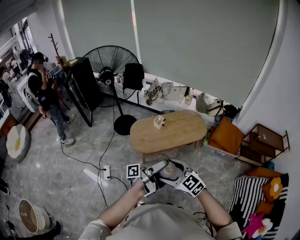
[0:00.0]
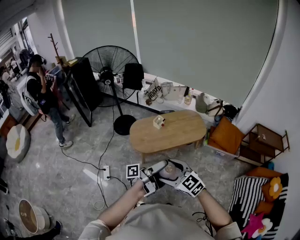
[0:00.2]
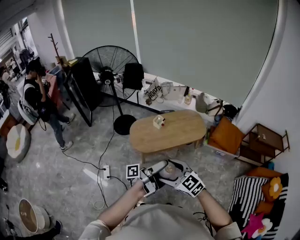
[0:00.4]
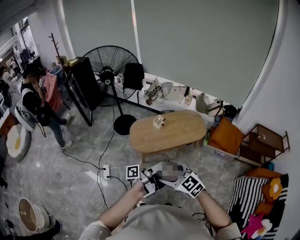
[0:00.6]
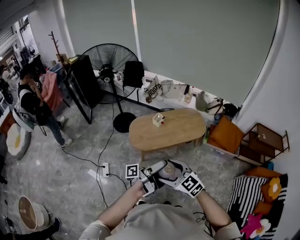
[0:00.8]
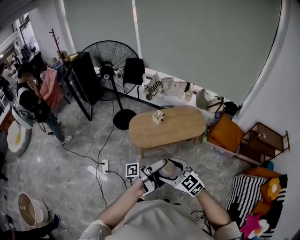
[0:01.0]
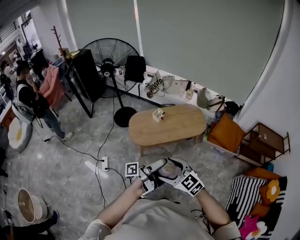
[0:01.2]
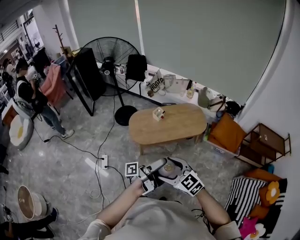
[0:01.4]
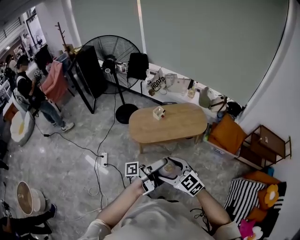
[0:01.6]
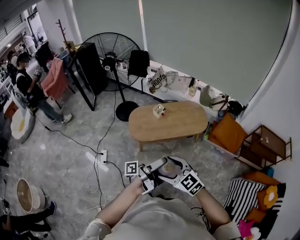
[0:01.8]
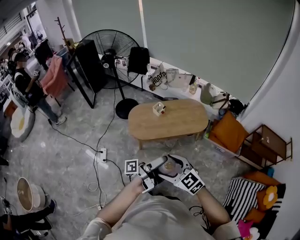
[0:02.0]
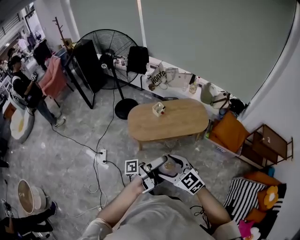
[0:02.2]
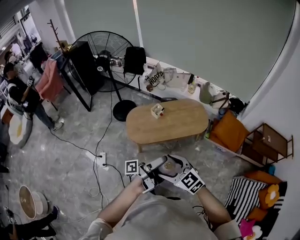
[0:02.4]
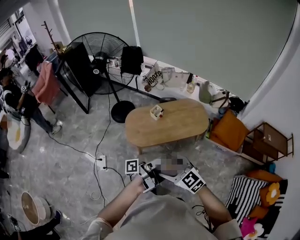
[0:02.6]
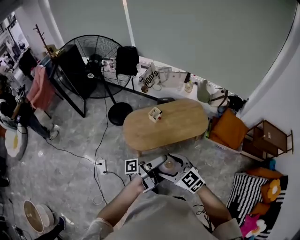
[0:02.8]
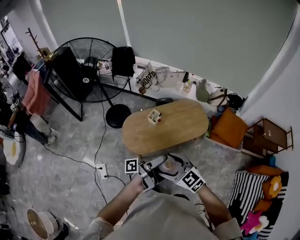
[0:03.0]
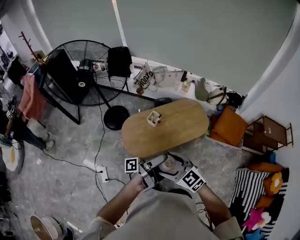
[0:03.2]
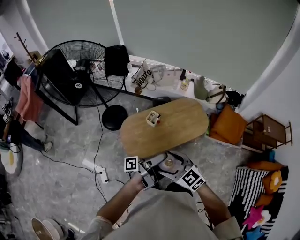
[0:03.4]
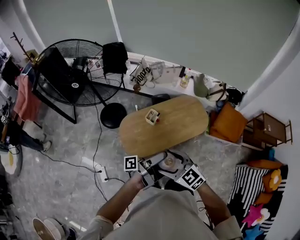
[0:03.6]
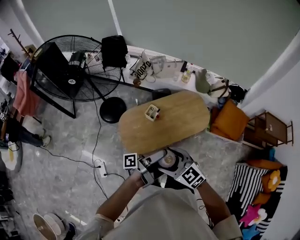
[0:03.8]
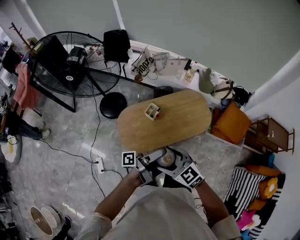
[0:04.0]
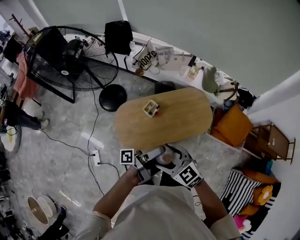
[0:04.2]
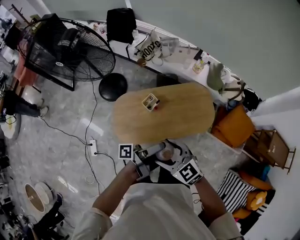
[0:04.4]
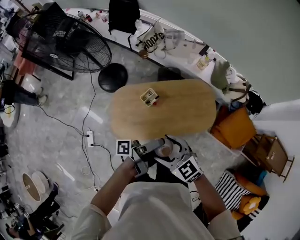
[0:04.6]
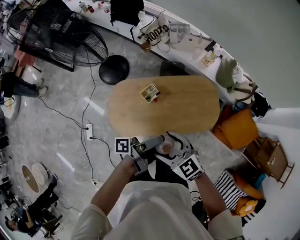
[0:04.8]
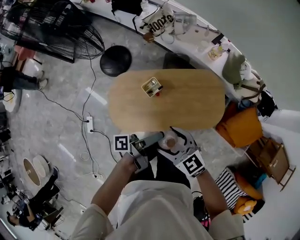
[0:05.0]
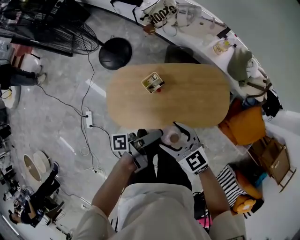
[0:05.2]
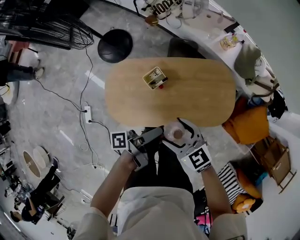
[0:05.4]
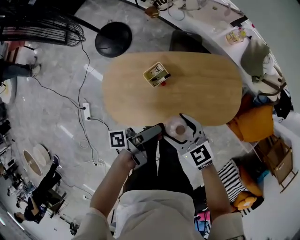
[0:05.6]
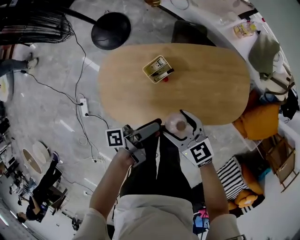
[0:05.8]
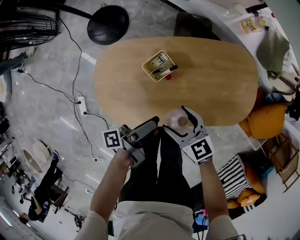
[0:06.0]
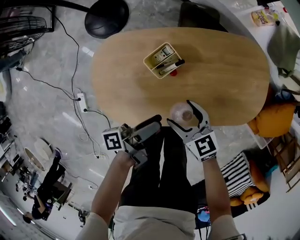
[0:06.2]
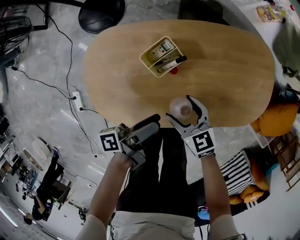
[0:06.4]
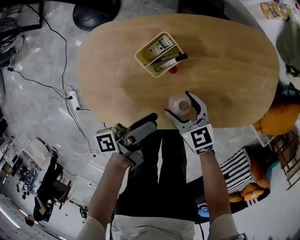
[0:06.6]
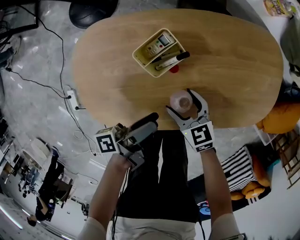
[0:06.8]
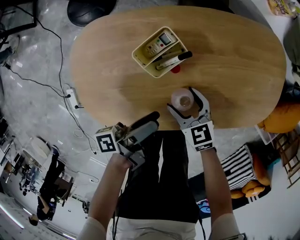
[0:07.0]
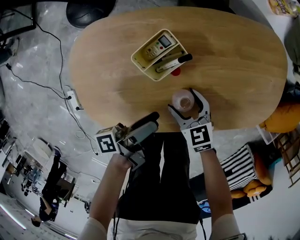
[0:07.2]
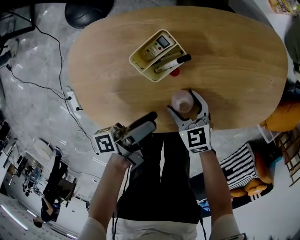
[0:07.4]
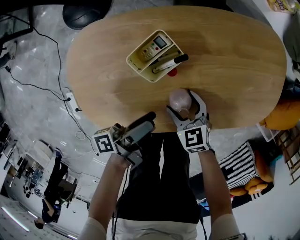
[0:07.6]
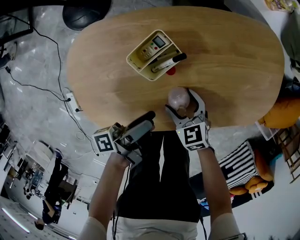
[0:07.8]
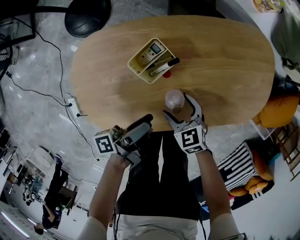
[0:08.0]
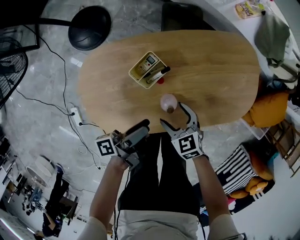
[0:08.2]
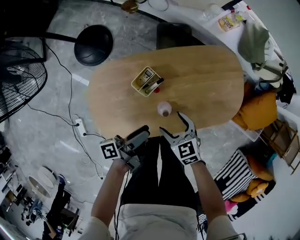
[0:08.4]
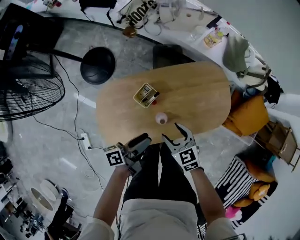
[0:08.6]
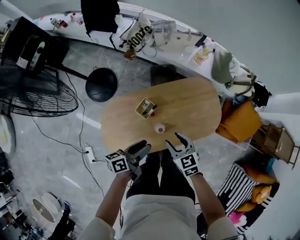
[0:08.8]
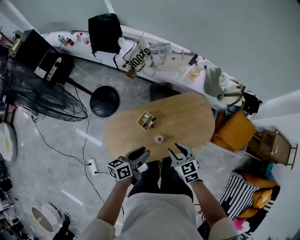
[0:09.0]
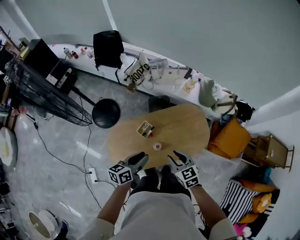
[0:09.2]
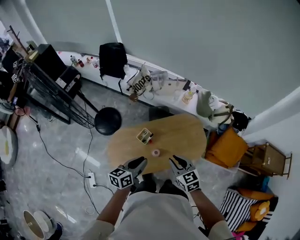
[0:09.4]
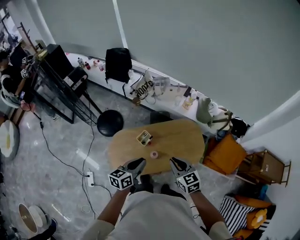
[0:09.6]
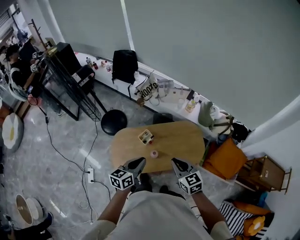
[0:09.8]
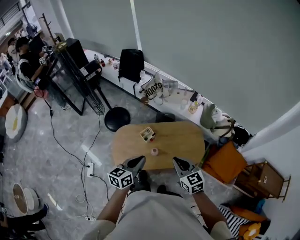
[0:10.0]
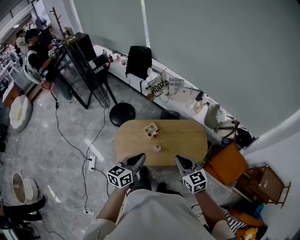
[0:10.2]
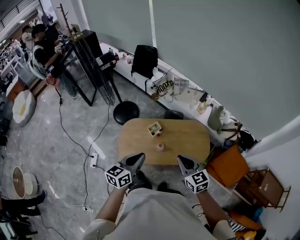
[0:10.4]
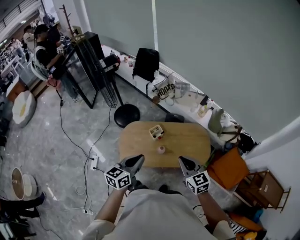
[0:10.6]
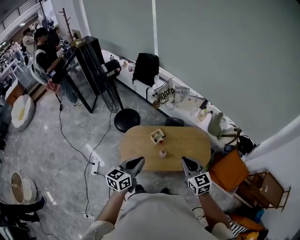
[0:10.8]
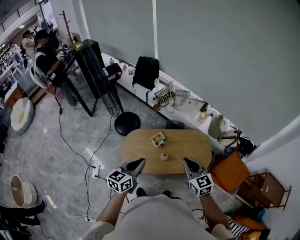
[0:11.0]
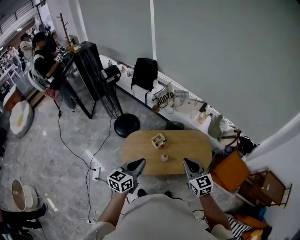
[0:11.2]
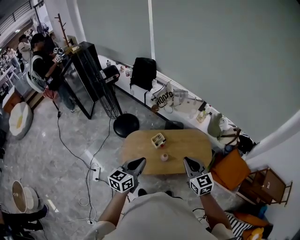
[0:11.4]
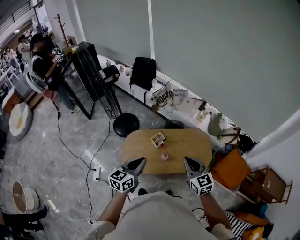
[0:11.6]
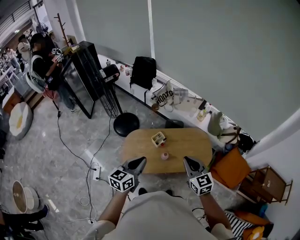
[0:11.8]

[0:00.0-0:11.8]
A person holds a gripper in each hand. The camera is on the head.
0.0 to 1.4 s: The right gripper ends up approximately 5 cm from where it was.
1.4 to 3.0 s: The right gripper ends up roughly 25 cm from where it was.
3.0 to 4.4 s: The right gripper ends up some 25 cm from where it was.
4.4 to 6.0 s: The right gripper shifts some 40 cm downward, and rotates about 20 degrees.
6.0 to 7.4 s: The right gripper travels downward by some 20 cm.
7.4 to 8.8 s: The right gripper goes approximately 40 cm upward, and closes.
8.8 to 10.4 s: The right gripper moves upward, some 30 cm, rotates approximately 20 degrees, and closes up.
10.4 to 11.8 s: The right gripper shifts by approximately 5 cm.

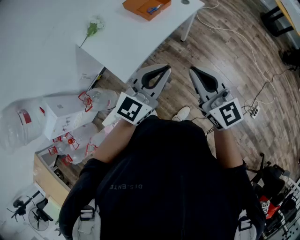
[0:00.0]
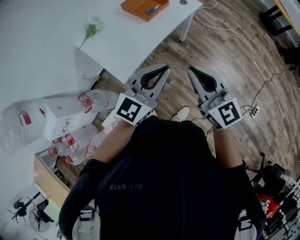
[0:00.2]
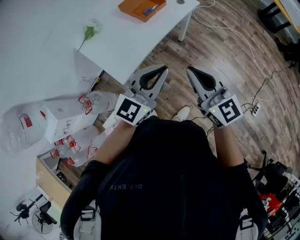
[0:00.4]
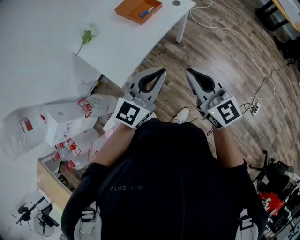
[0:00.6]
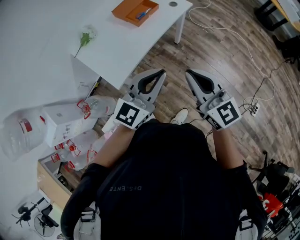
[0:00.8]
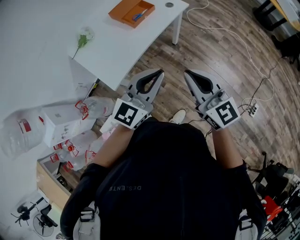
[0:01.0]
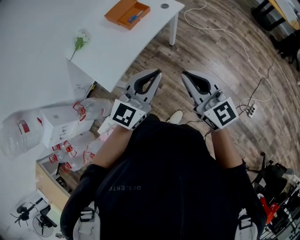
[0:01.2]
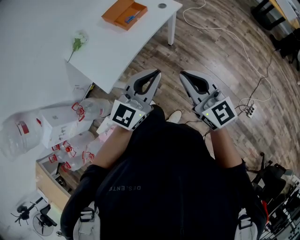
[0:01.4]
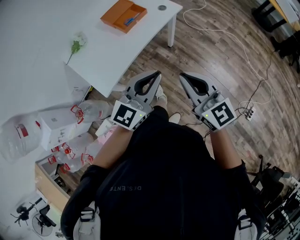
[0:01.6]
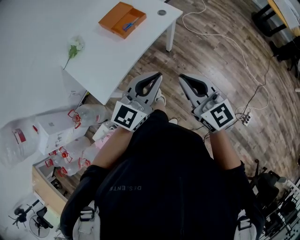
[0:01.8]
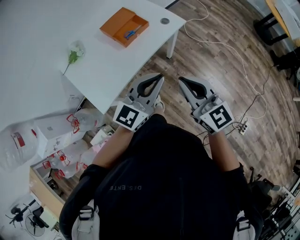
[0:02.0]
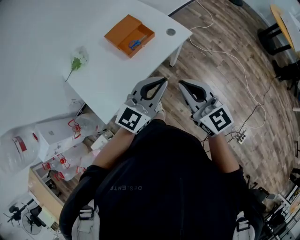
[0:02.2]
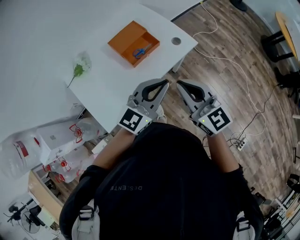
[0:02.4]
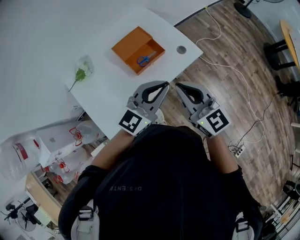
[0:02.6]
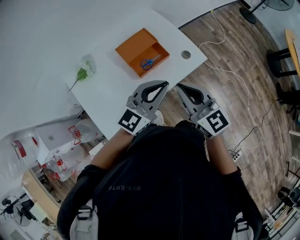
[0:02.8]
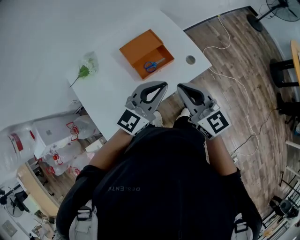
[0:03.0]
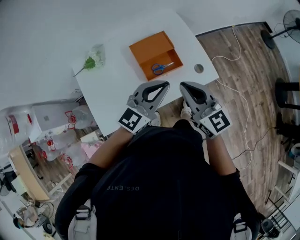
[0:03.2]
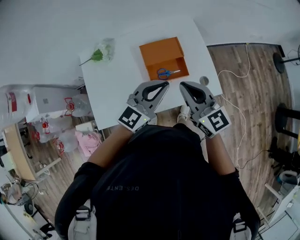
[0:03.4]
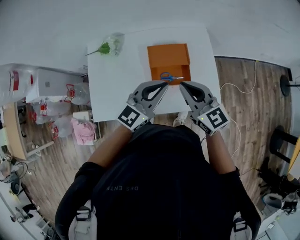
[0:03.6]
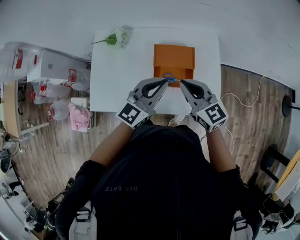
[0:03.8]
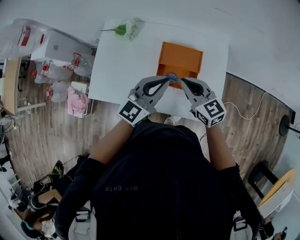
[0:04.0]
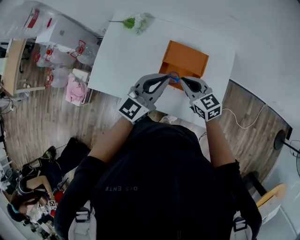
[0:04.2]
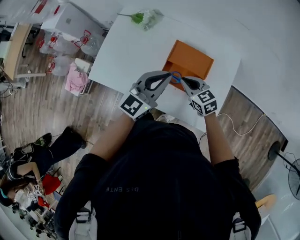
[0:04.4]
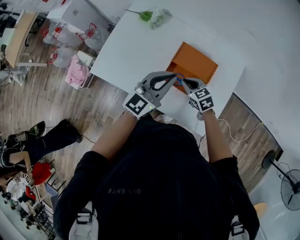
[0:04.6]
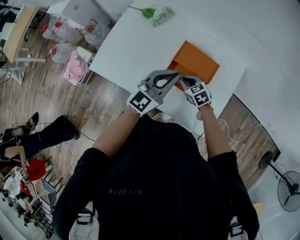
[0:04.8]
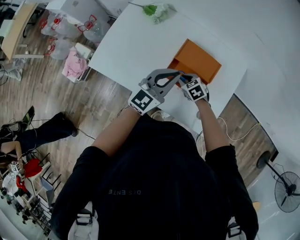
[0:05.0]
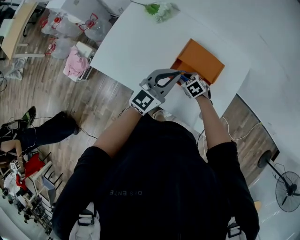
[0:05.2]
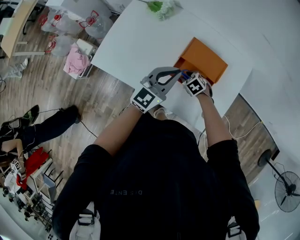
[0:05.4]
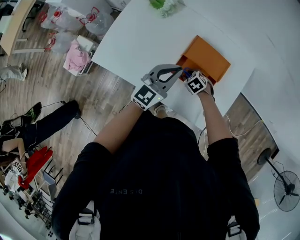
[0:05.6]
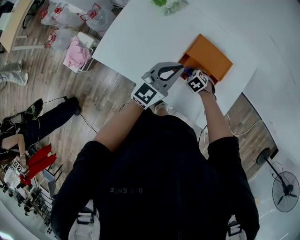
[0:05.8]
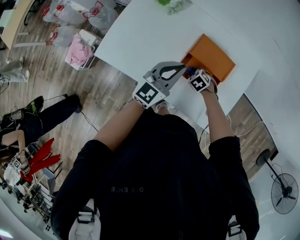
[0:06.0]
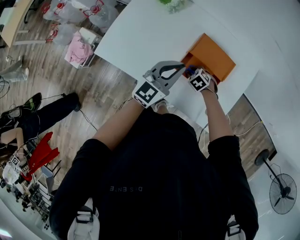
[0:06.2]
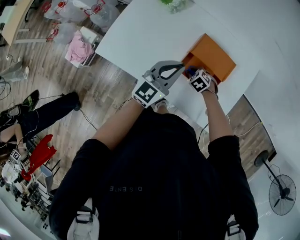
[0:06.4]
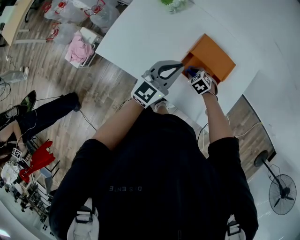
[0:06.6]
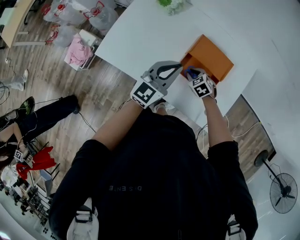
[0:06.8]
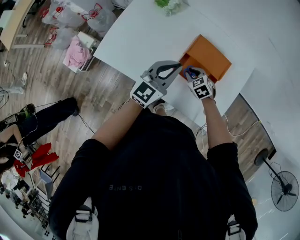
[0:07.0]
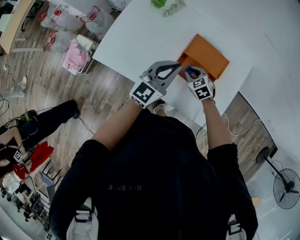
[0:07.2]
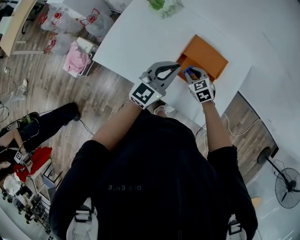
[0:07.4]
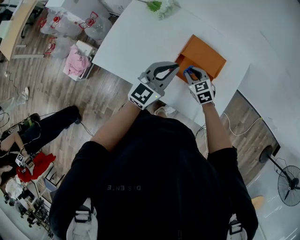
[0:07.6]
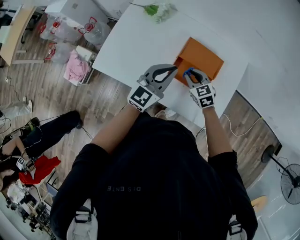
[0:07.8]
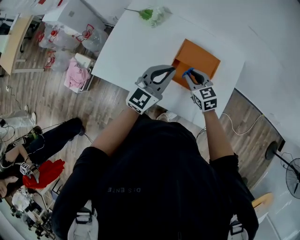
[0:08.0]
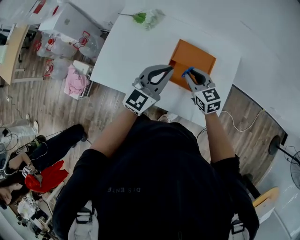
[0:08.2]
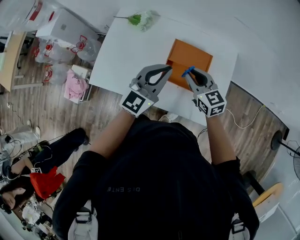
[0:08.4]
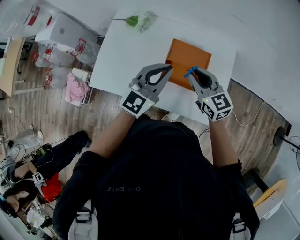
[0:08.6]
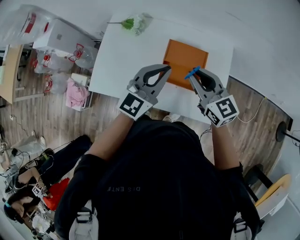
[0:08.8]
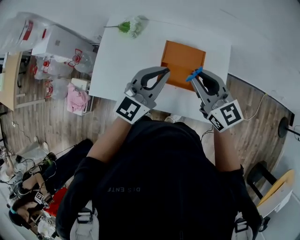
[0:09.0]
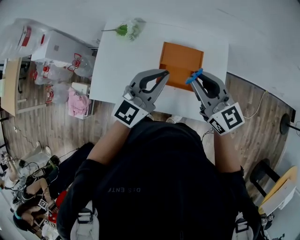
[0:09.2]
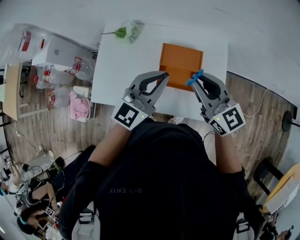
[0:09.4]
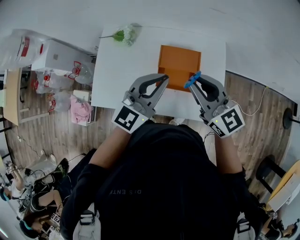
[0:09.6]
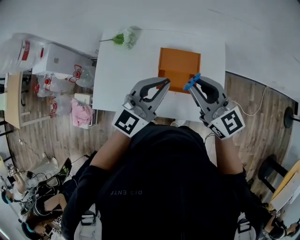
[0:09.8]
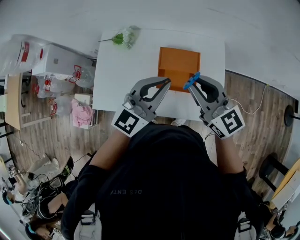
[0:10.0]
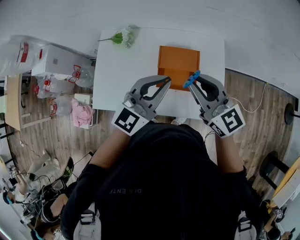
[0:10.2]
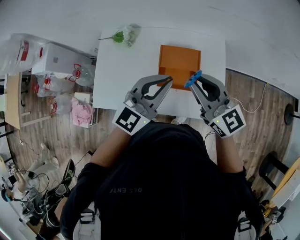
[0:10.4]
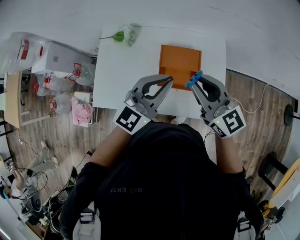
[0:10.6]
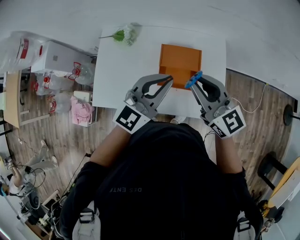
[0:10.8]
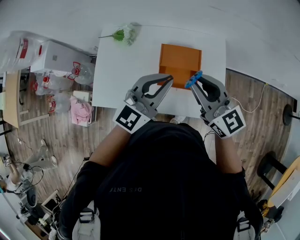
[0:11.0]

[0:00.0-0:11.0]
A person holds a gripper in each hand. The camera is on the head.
0.0 to 1.6 s: Both grippers travel together to the right, roughly 10 cm.
1.6 to 3.2 s: The two grippers travel together, forward, some 40 cm. The right gripper swivels about 20 degrees.
3.2 to 4.8 s: The left gripper moves roughly 15 cm, and swivels some 50 degrees, while the right gripper heads downward, covering about 30 cm, and points its fingers about 50 degrees further downward.
4.8 to 6.2 s: The right gripper goes roughly 10 cm downward, swivels some 30 degrees, and opens up, while the left gripper changes place by roughly 5 cm.
6.2 to 7.8 s: The right gripper goes some 15 cm upward, and angles its fingers upward, by about 30 degrees.
7.8 to 9.4 s: The left gripper travels upward by about 10 cm, while the right gripper goes some 25 cm upward, and tilts its fingers approximately 40 degrees upward.
9.4 to 11.0 s: The grippers move only a little.

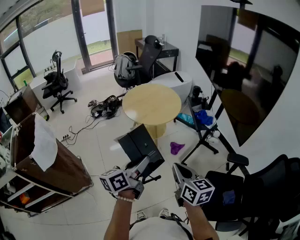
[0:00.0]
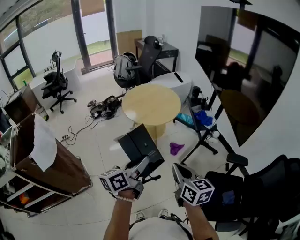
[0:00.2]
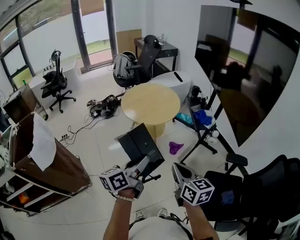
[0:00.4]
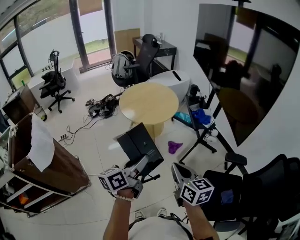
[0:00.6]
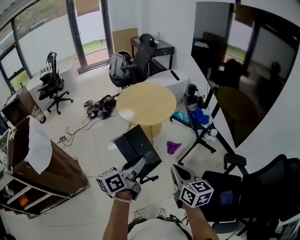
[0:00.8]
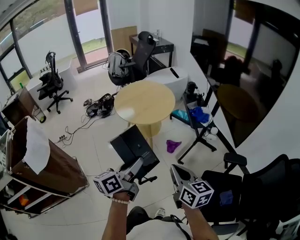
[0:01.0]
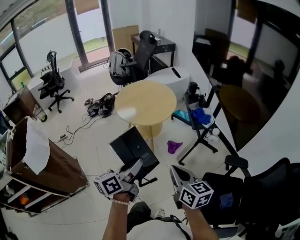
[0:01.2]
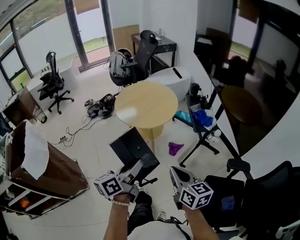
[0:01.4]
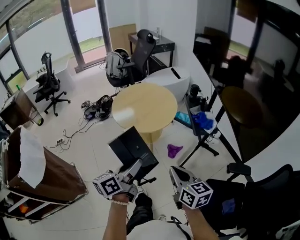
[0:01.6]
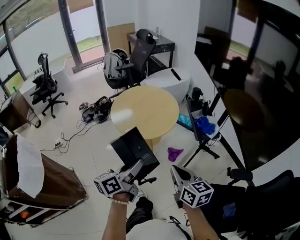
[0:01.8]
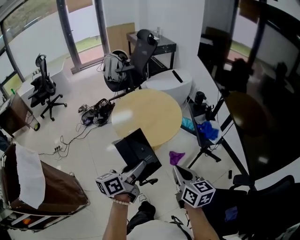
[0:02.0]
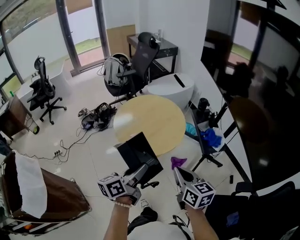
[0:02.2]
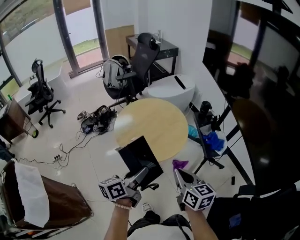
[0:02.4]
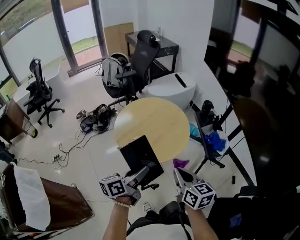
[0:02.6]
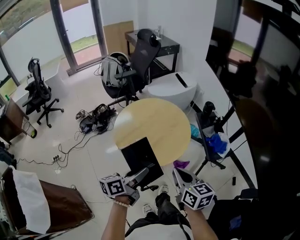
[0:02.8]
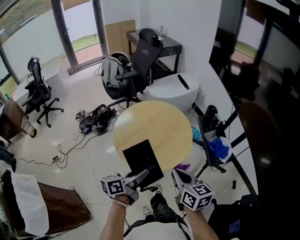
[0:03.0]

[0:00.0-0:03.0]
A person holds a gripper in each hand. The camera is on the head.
0.0 to 1.6 s: The two grippers go roughly 10 cm forward.
1.6 to 3.0 s: Both grippers move forward, roughly 25 cm.
